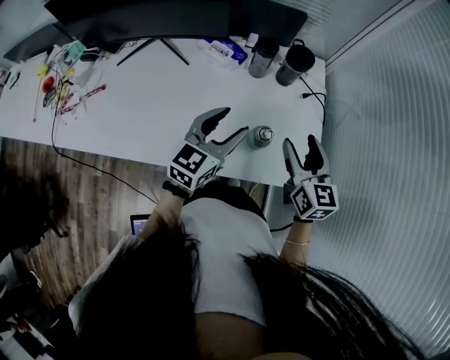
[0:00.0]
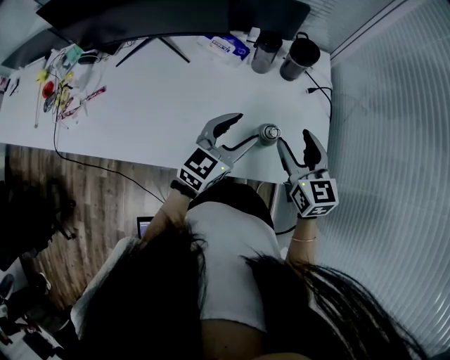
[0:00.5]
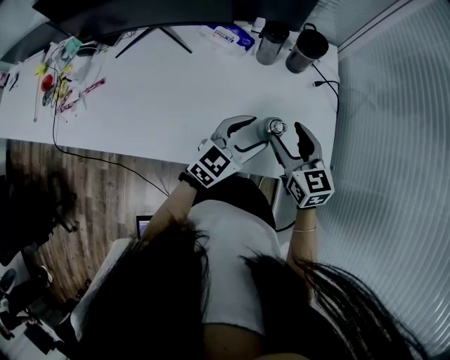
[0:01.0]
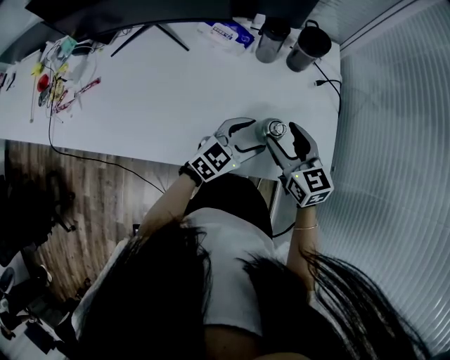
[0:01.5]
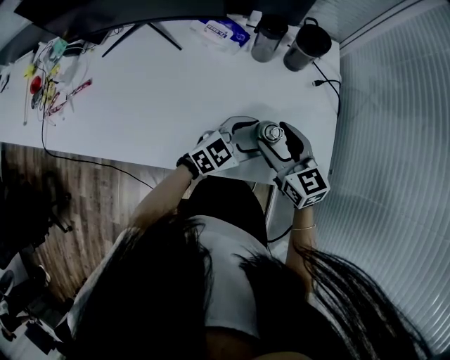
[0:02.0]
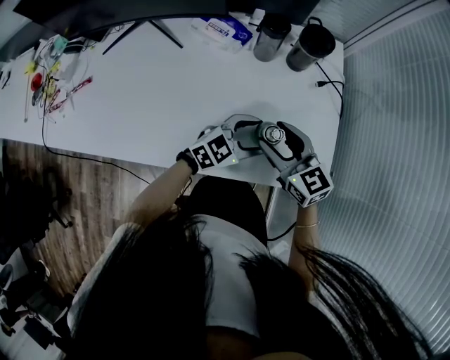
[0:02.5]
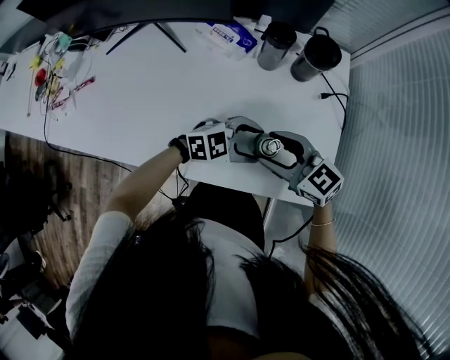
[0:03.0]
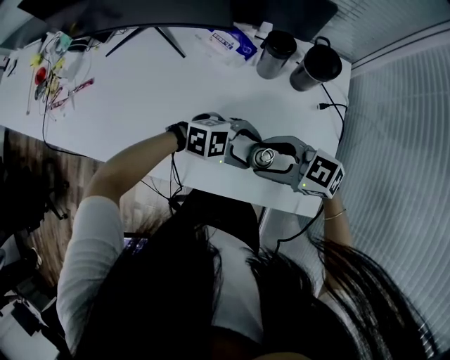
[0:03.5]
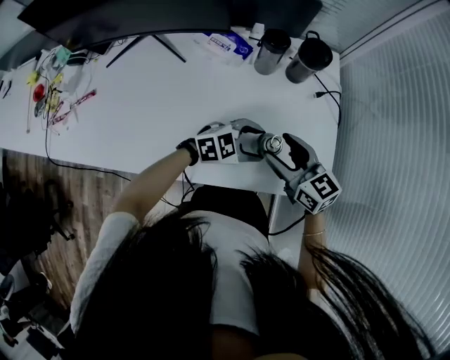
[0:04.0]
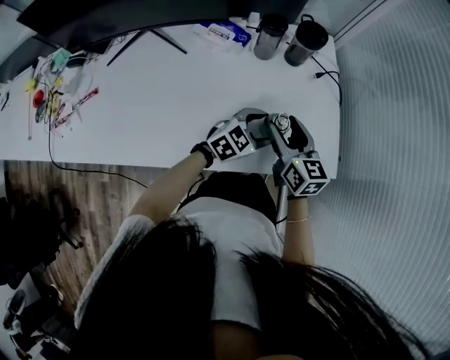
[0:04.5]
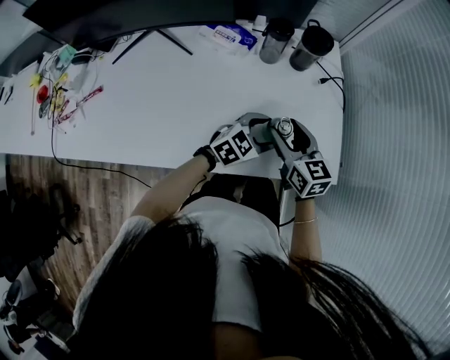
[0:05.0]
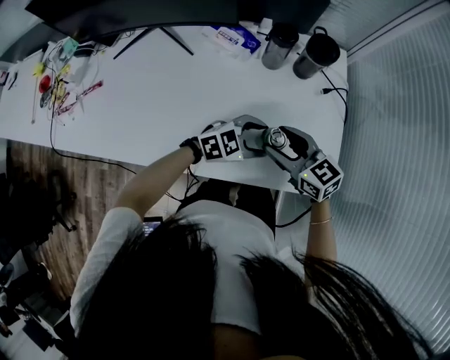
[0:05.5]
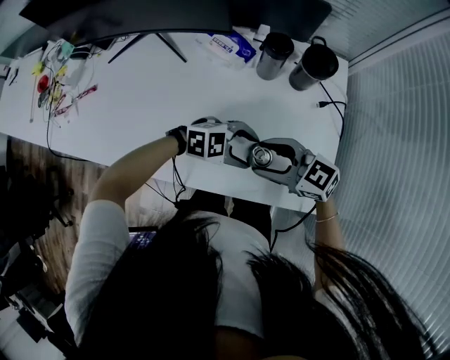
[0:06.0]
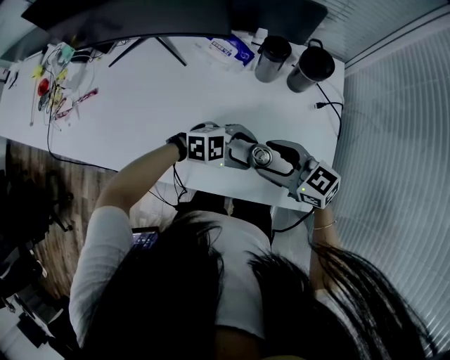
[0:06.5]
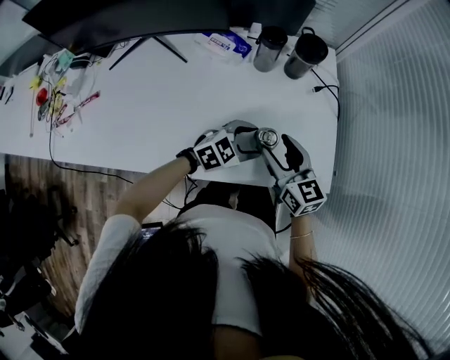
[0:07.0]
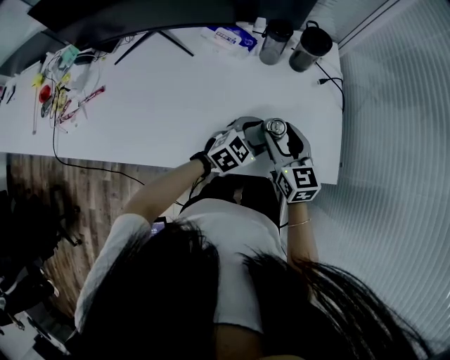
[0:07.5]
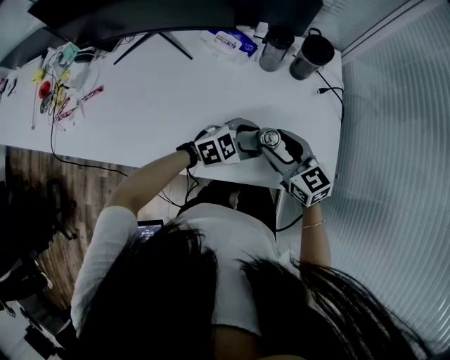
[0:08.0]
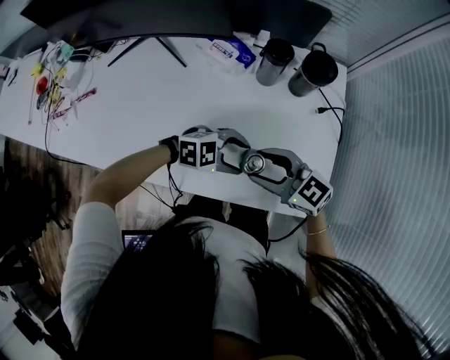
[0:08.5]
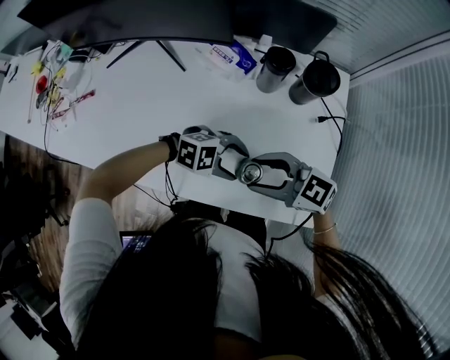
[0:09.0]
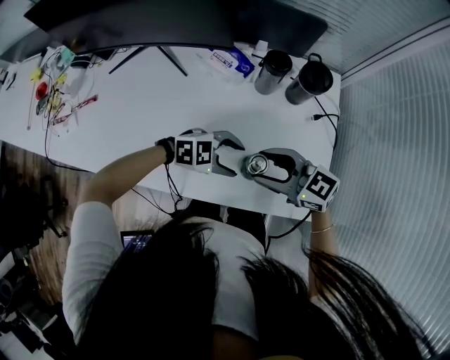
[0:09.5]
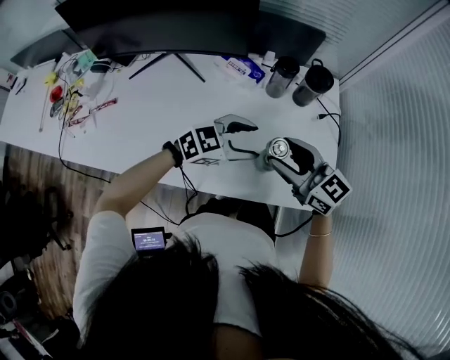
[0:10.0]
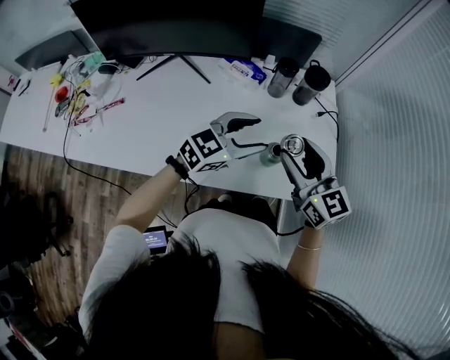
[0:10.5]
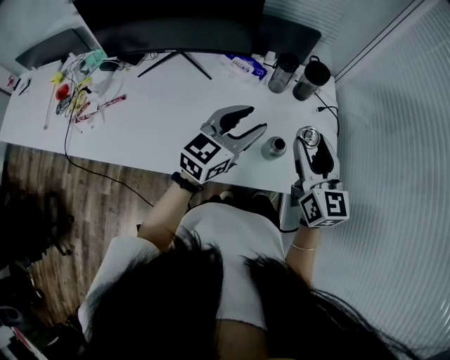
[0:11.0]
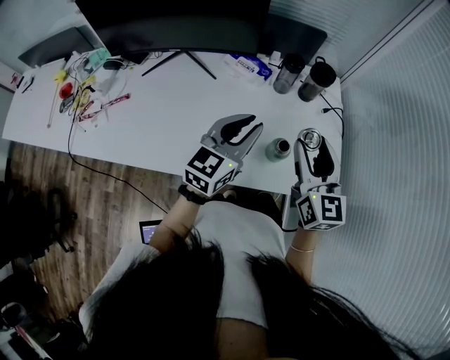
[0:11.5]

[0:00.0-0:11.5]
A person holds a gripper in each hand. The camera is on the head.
0:00.0 to 0:02.0: The left gripper is displaced downward and to the right by some 20 cm, and changes its angle by roughly 30 degrees. Meanwhile the right gripper travels downward and to the left by roughly 15 cm, and rotates roughly 20 degrees.
0:02.0 to 0:04.0: The left gripper turns by roughly 20 degrees.
0:04.0 to 0:06.0: The right gripper rotates about 40 degrees.
0:06.0 to 0:07.5: The left gripper swivels about 40 degrees. Meanwhile the right gripper turns by roughly 60 degrees.
0:07.5 to 0:09.5: The right gripper turns by roughly 50 degrees; the left gripper turns by some 30 degrees.
0:09.5 to 0:11.5: The left gripper shifts about 20 cm upward, points its fingers approximately 30 degrees further upward, and closes; the right gripper travels upward by some 15 cm, and turns by some 70 degrees.

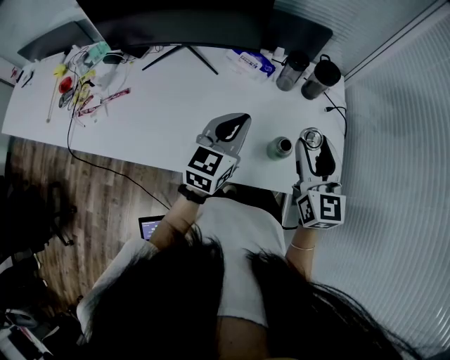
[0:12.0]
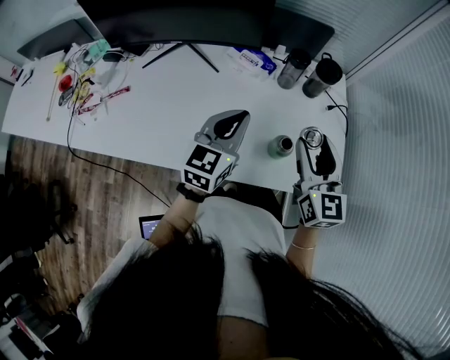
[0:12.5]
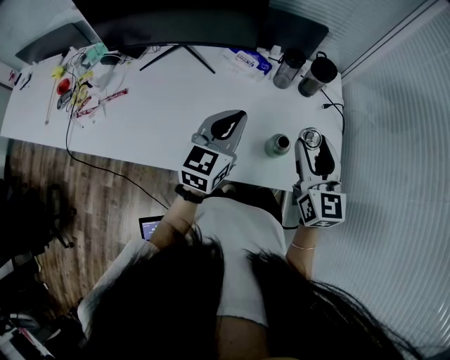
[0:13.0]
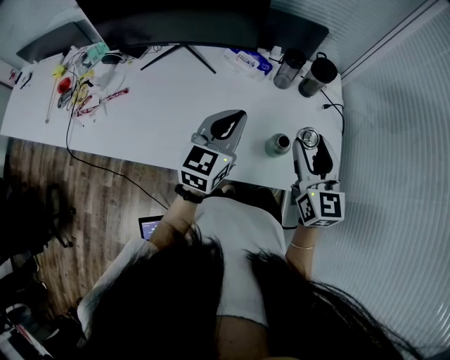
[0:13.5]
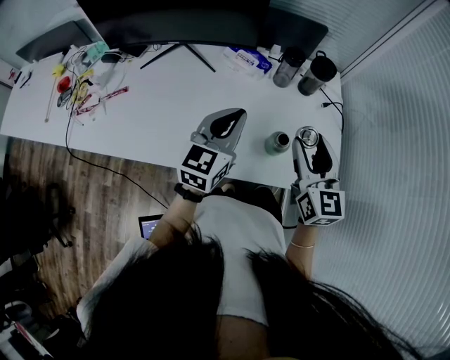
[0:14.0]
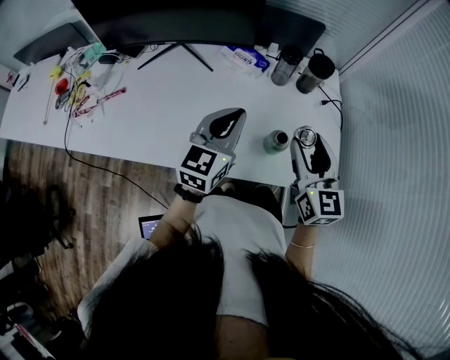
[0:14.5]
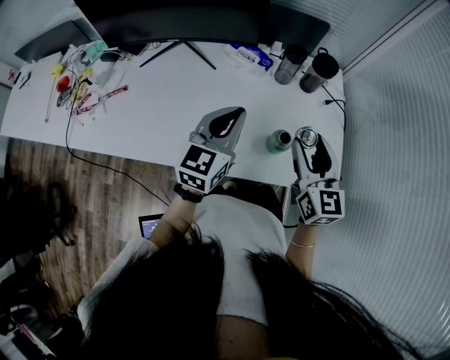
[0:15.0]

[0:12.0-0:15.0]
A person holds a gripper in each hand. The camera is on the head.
0:12.0 to 0:15.0: The grippers make only small movements.

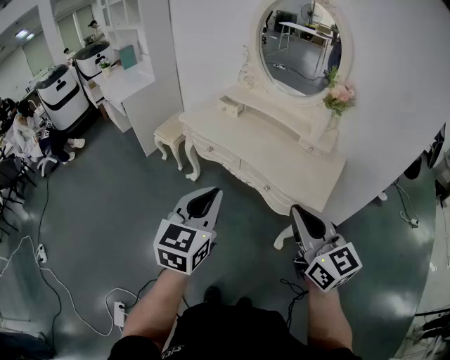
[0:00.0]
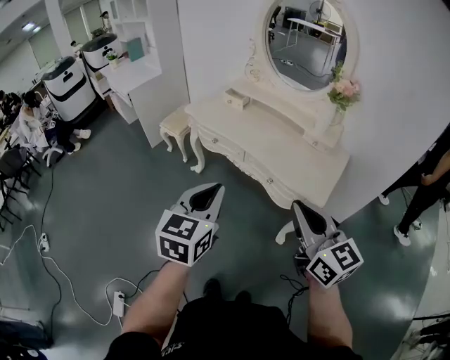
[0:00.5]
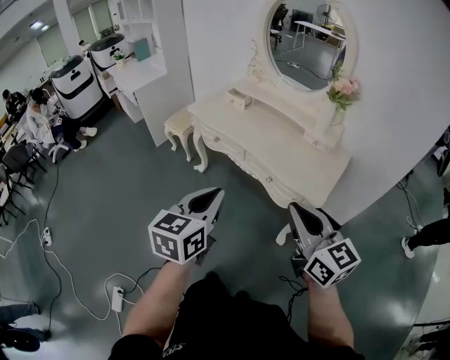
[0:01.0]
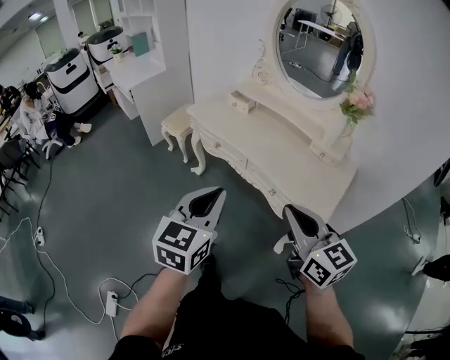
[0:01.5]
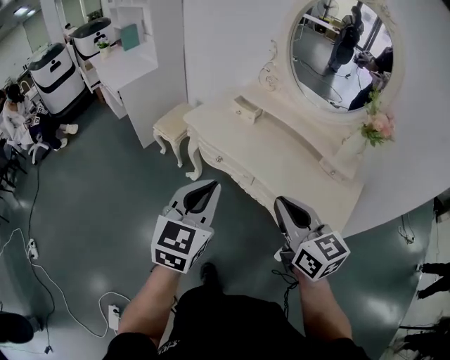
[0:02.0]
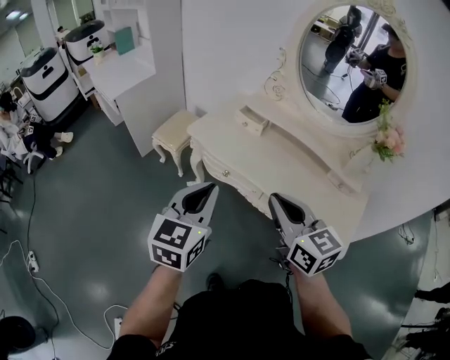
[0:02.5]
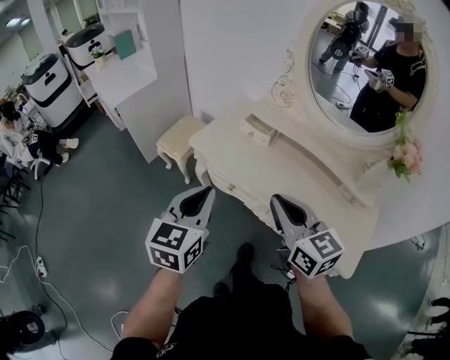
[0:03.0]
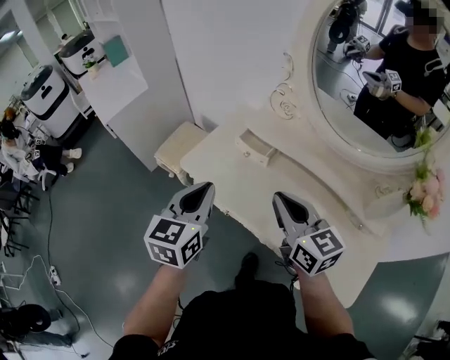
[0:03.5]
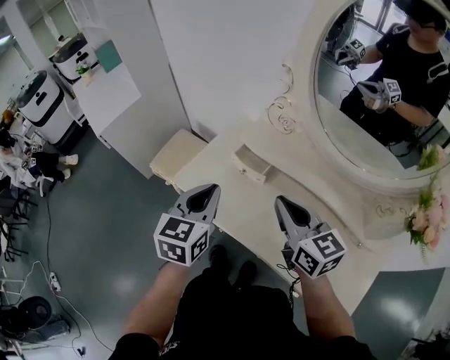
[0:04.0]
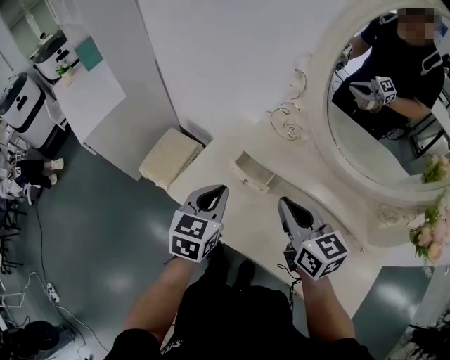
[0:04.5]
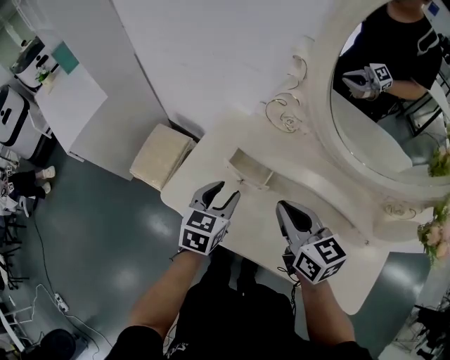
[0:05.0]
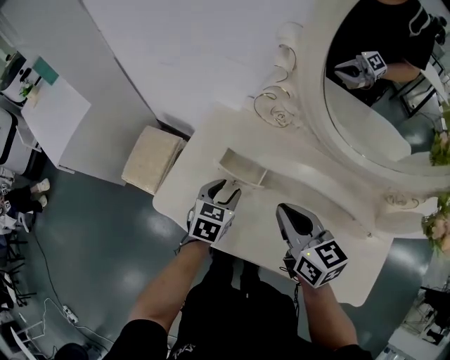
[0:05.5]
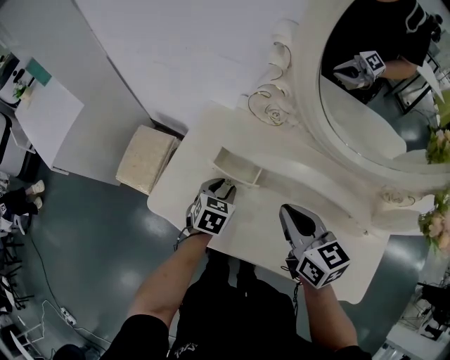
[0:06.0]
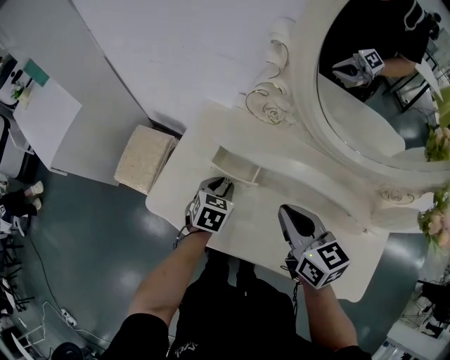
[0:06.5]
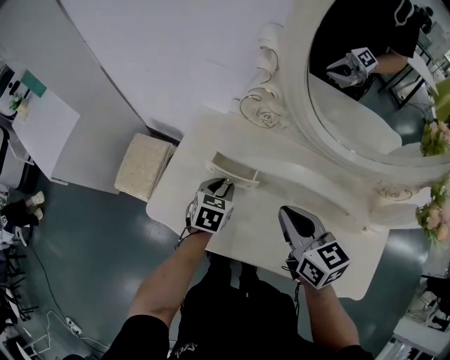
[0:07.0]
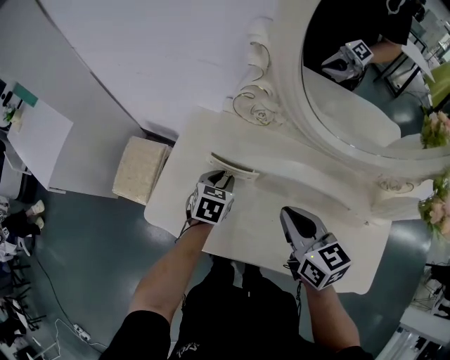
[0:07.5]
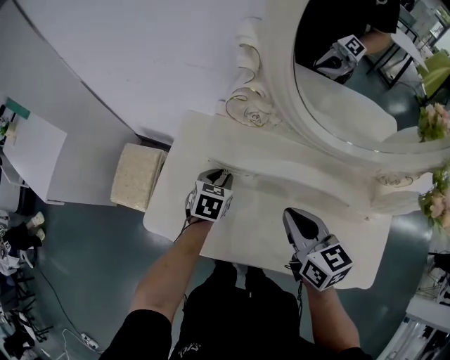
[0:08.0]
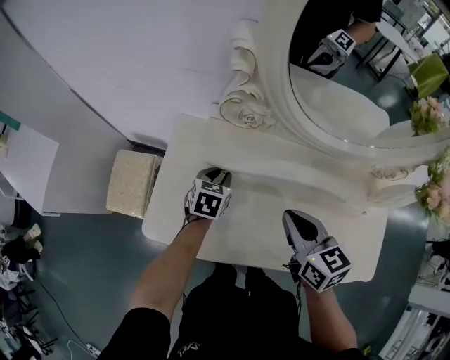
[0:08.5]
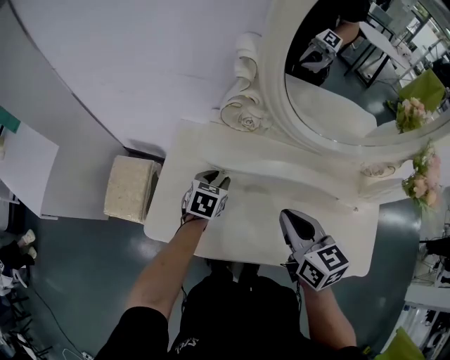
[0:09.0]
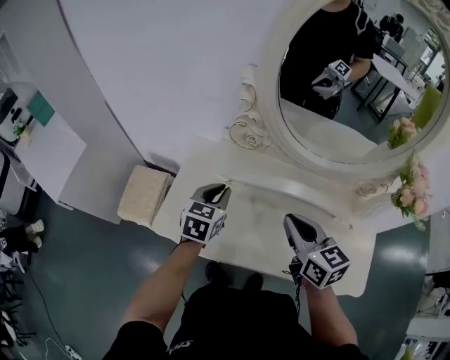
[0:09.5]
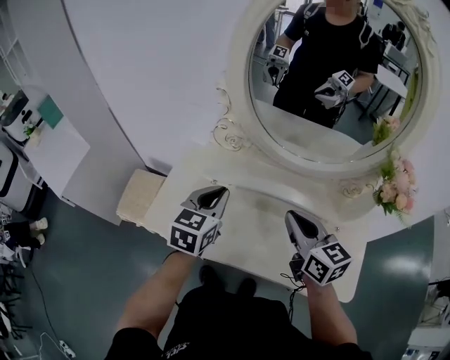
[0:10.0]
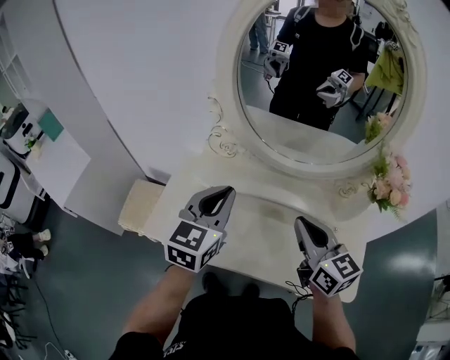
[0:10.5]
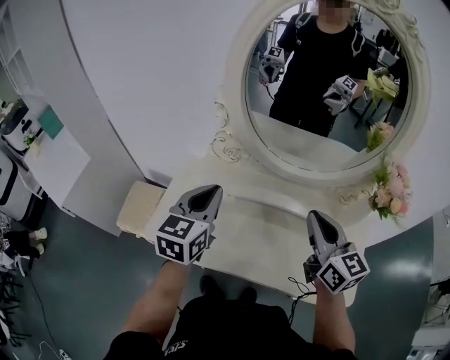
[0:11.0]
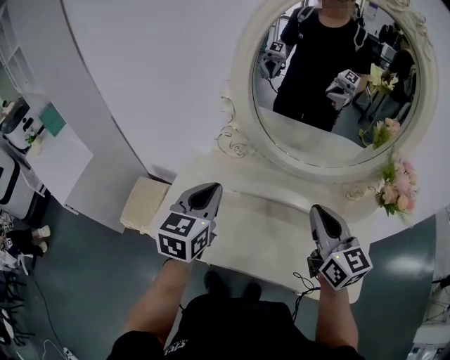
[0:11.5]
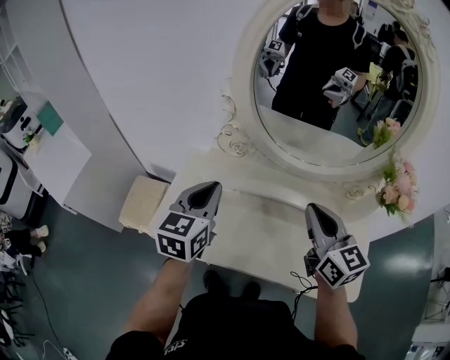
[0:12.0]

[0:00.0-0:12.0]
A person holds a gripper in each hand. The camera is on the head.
0:00.0 to 0:02.0: The right gripper shifts approximately 25 cm forward and to the left, while the left gripper goes roughly 20 cm forward.
0:02.0 to 0:04.0: The two grippers travel together, forward, roughly 40 cm.
0:04.0 to 0:06.0: The left gripper heads downward and forward, covering about 30 cm, rotates about 30 degrees, and opens, while the right gripper is displaced downward and forward by some 10 cm, and rotates about 20 degrees.
0:06.0 to 0:08.0: The left gripper is displaced forward by roughly 5 cm.
0:08.0 to 0:10.0: The right gripper heads upward, to the right and backward, covering about 15 cm, while the left gripper goes approximately 25 cm upward and backward, and swivels about 20 degrees.
0:10.0 to 0:12.0: The two grippers go about 5 cm upward.
